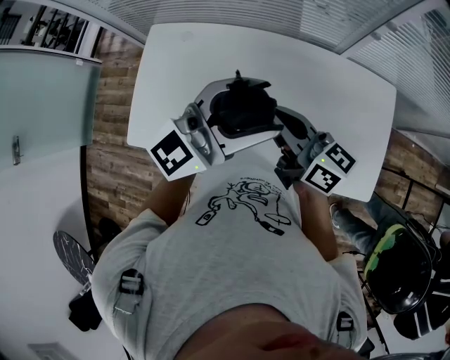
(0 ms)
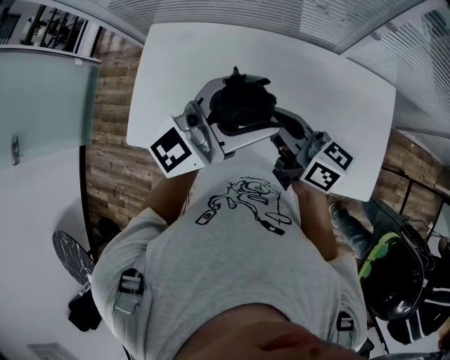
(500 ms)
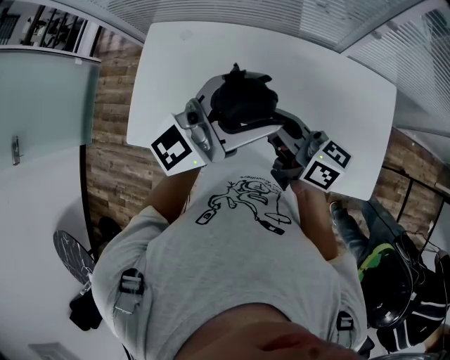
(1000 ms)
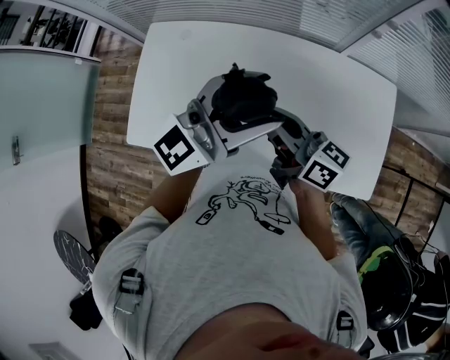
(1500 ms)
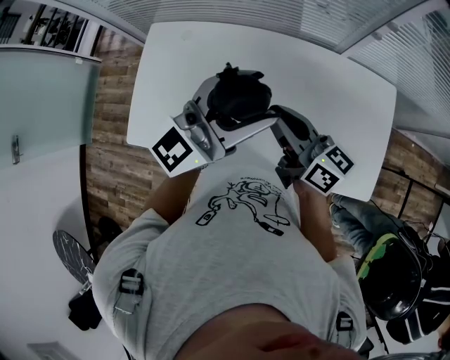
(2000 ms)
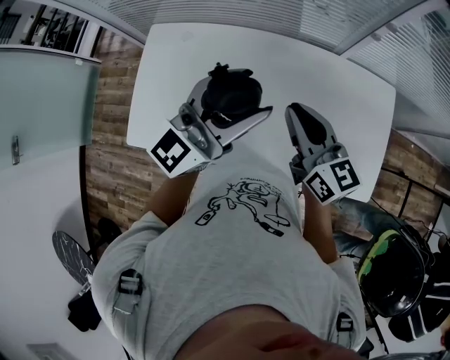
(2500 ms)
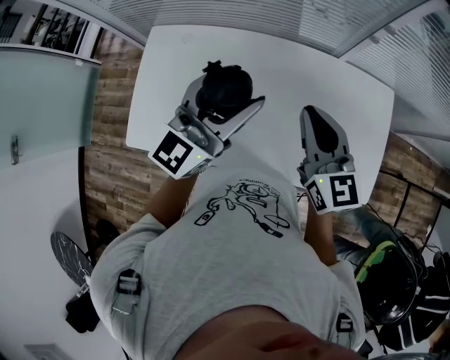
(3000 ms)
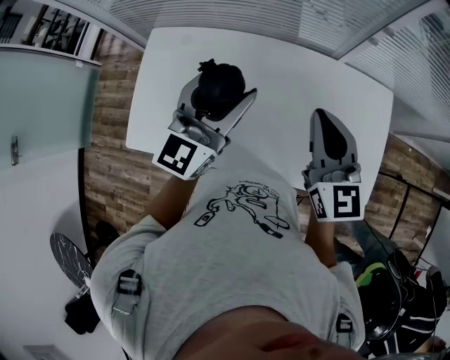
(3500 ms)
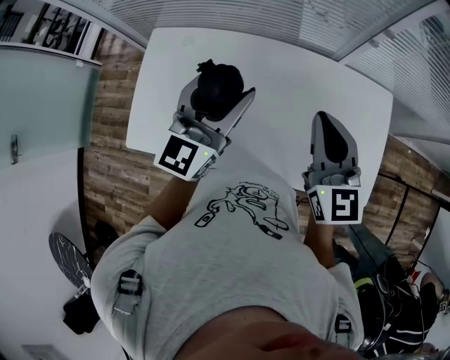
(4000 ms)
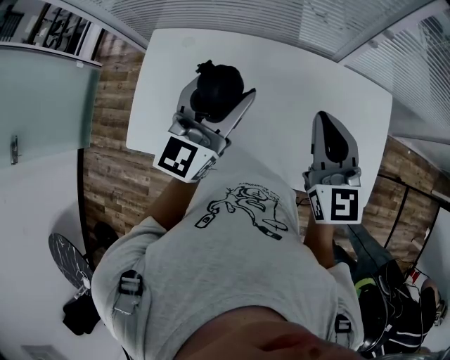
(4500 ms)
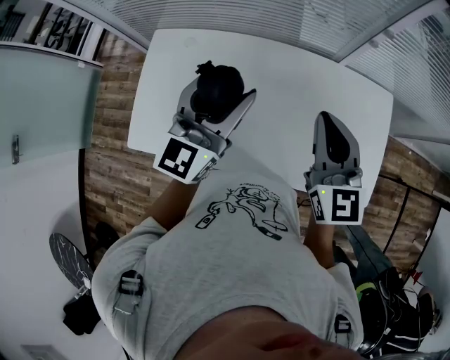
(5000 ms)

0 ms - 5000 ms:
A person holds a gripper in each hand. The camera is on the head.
0 ms - 2500 ms: The right gripper goes about 5 cm to the right, and rotates some 30 degrees.
2500 ms - 5000 ms: The left gripper moves about 5 cm, and rotates some 20 degrees; the right gripper shifts by roughly 5 cm, and rotates roughly 30 degrees.

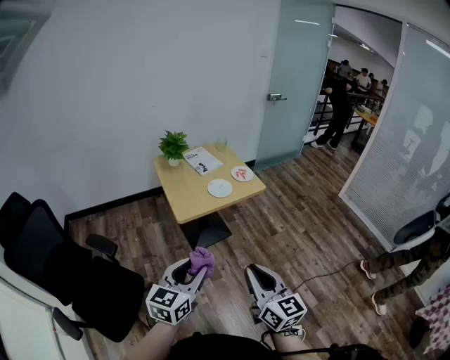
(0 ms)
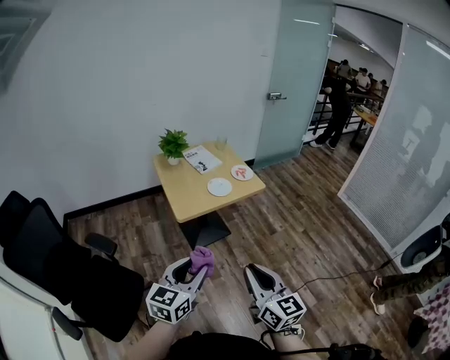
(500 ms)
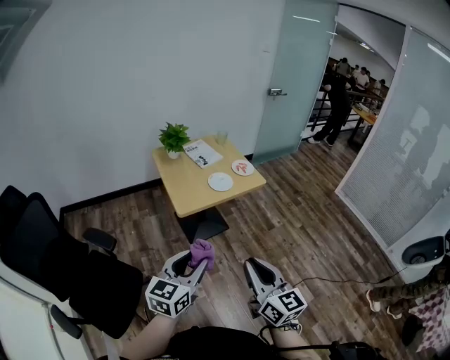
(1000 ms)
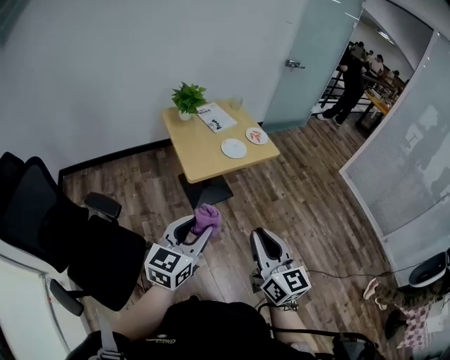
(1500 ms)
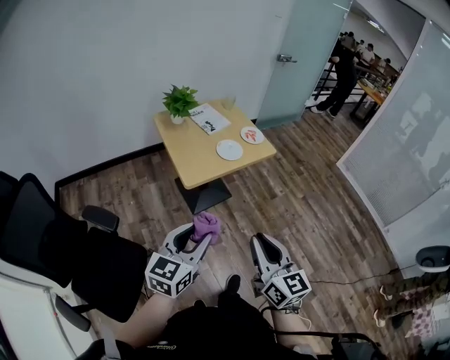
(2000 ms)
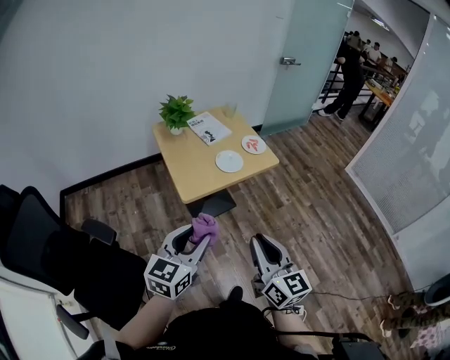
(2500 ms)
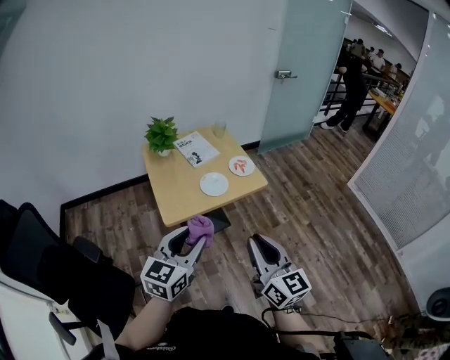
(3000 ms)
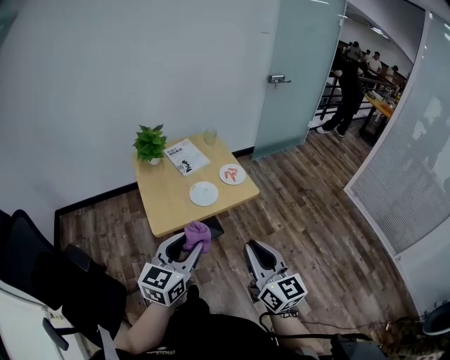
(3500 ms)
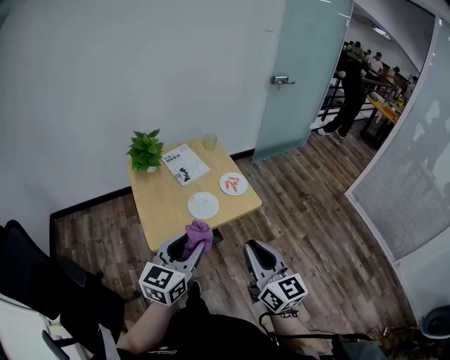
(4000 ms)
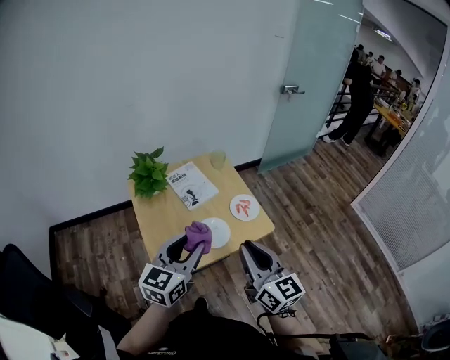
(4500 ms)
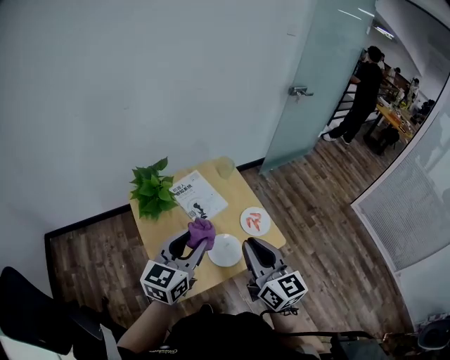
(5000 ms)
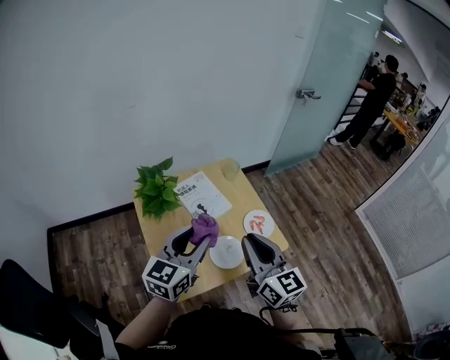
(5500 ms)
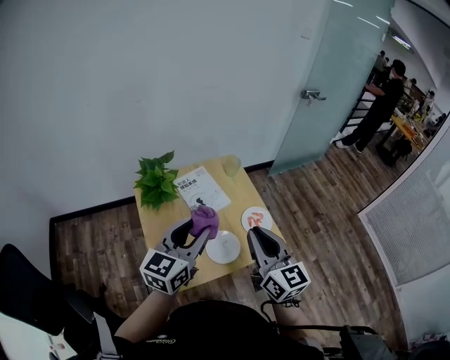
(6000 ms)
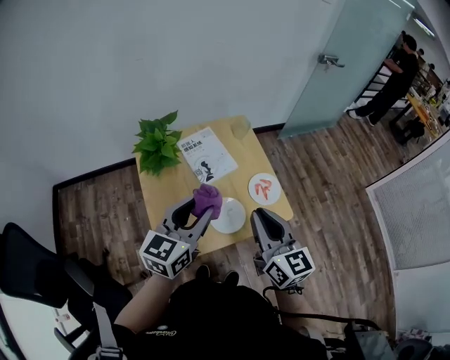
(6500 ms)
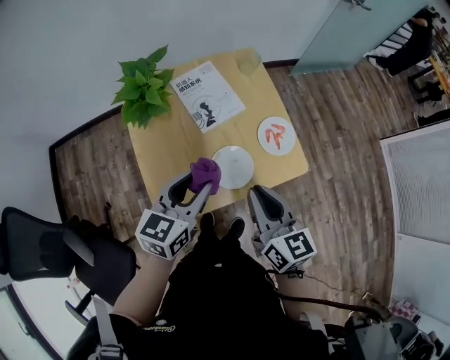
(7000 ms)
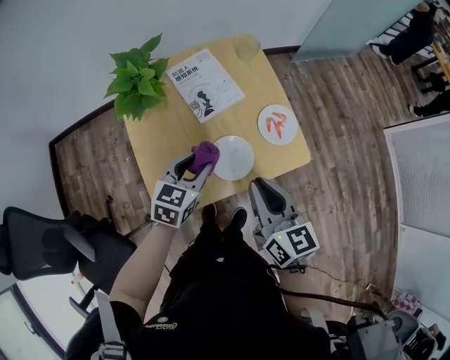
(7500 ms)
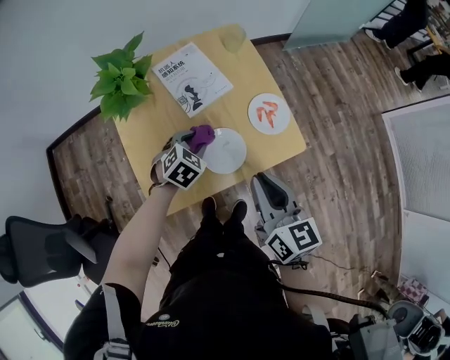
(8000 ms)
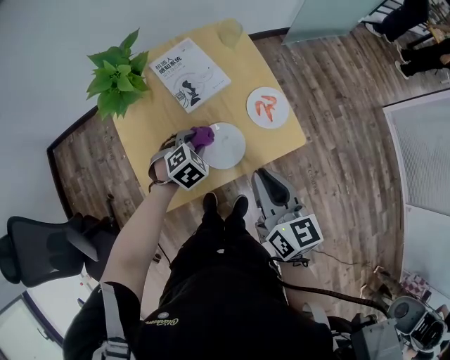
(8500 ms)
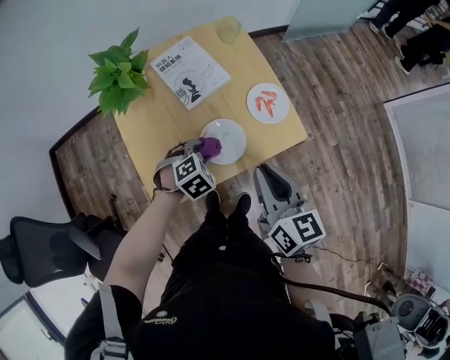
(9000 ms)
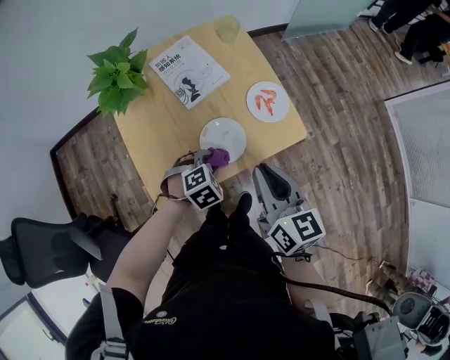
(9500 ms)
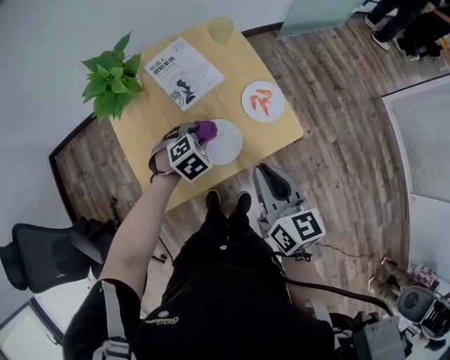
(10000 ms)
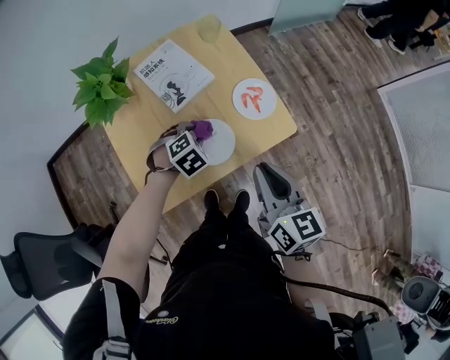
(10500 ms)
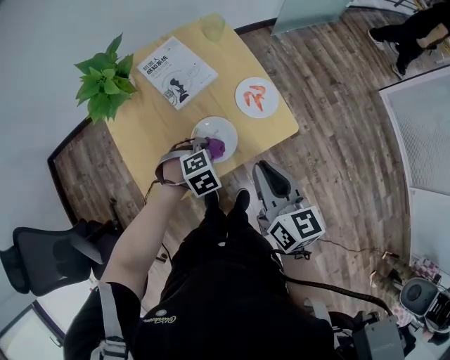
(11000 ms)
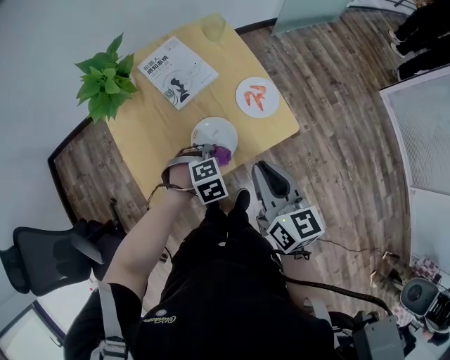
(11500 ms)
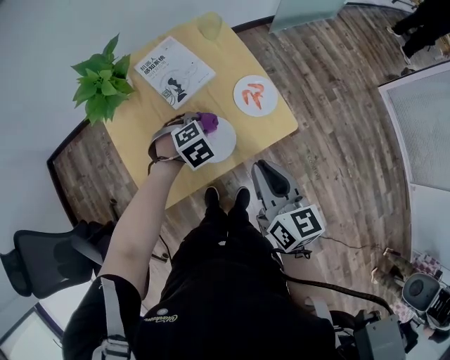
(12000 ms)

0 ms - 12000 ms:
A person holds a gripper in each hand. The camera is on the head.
0 ms - 2000 ms: The grippers both shift to the left by about 10 cm.
2000 ms - 4000 ms: Both grippers move forward and to the right, about 30 cm.
4000 ms - 6000 ms: Both grippers travel together forward, approximately 25 cm.
6000 ms - 8000 ms: The right gripper travels downward by roughly 15 cm, and rotates about 20 degrees. The left gripper moves downward, some 35 cm, and tilts its fingers roughly 50 degrees downward.
8000 ms - 10000 ms: The left gripper reaches roughly 10 cm backward, then returns.

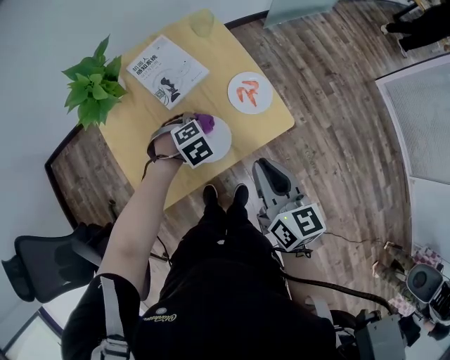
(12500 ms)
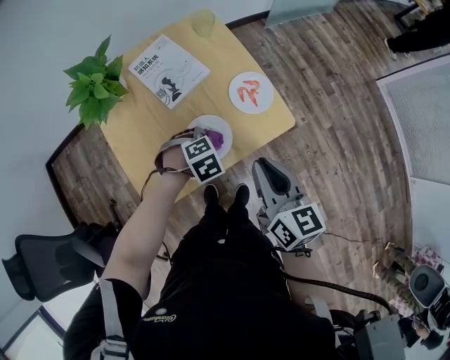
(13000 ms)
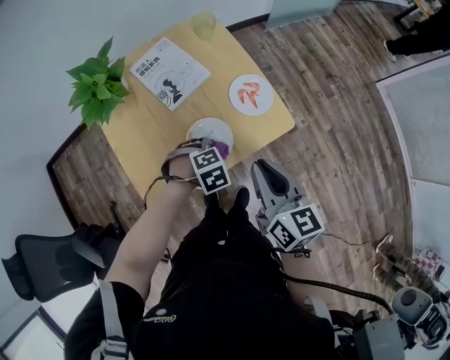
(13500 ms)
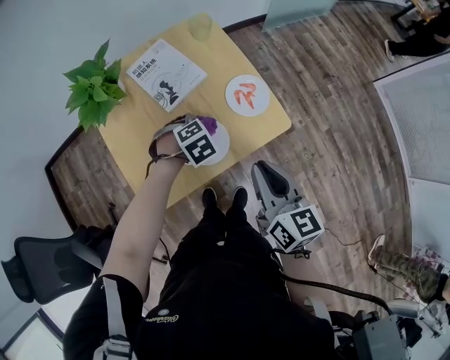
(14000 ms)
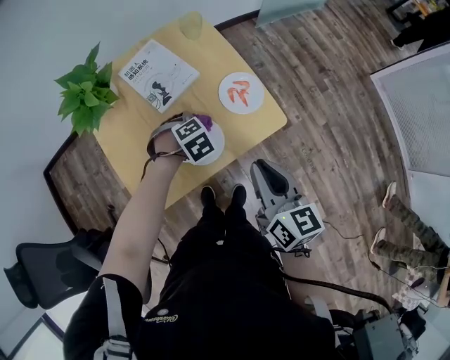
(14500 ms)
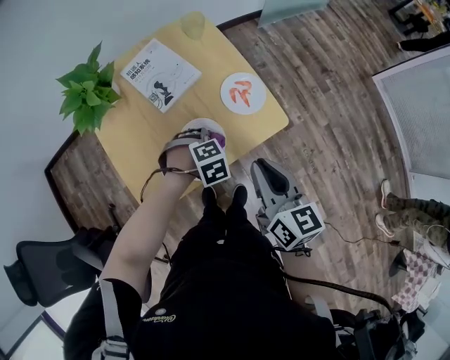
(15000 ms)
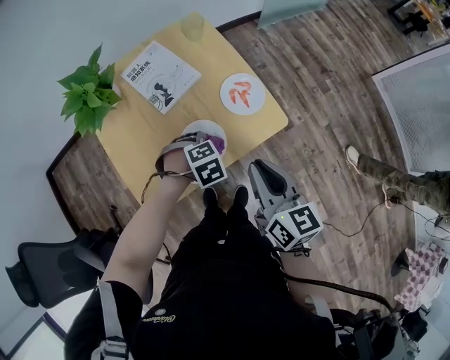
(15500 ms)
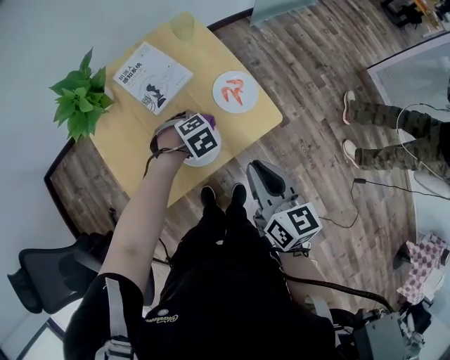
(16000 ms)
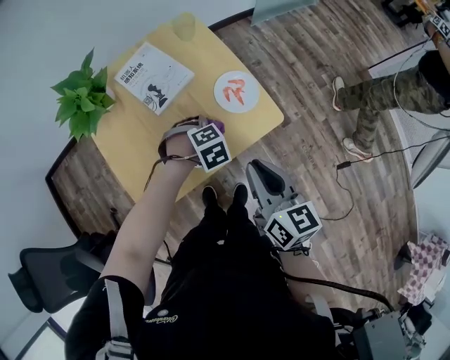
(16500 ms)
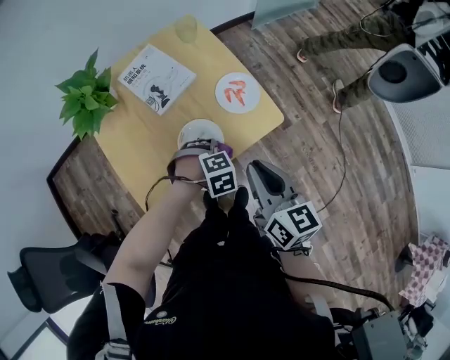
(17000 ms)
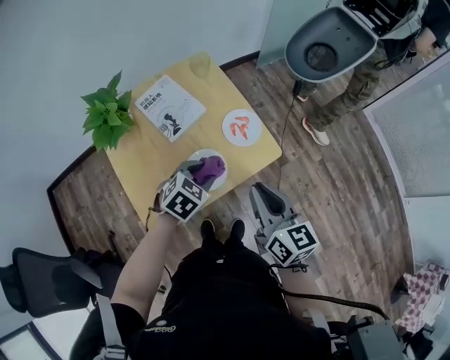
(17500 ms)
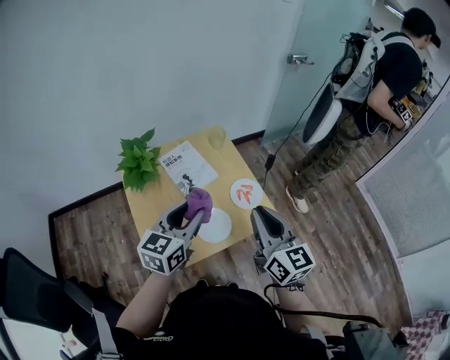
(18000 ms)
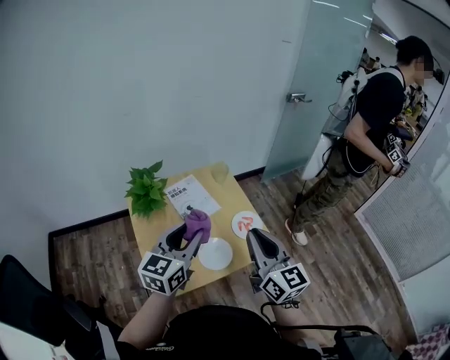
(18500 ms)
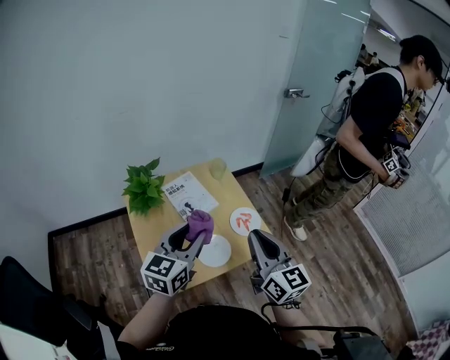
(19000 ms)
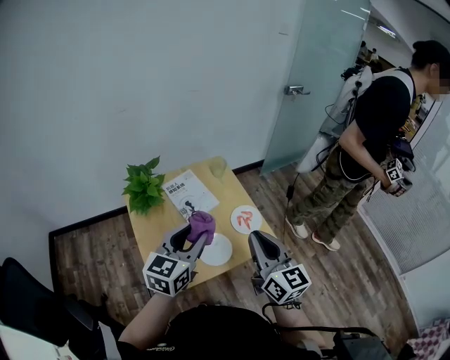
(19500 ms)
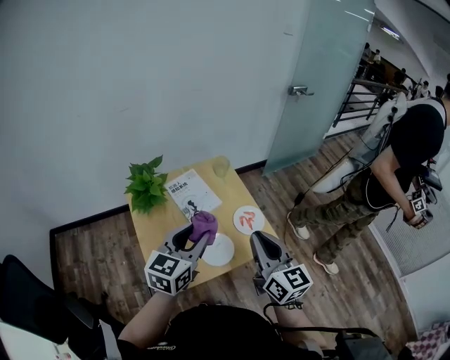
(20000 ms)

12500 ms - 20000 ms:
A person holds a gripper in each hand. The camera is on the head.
14500 ms - 16500 ms: The left gripper moves approximately 5 cm.
16500 ms - 18000 ms: The right gripper moves upward, approximately 15 cm, and rotates about 20 degrees. The left gripper goes roughly 30 cm upward, and points its fingers roughly 70 degrees further upward.
18000 ms - 20000 ms: There are only small adjustments of the grippers.

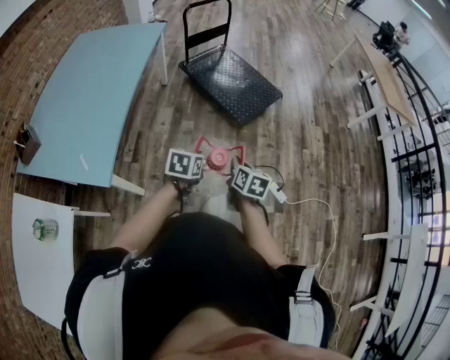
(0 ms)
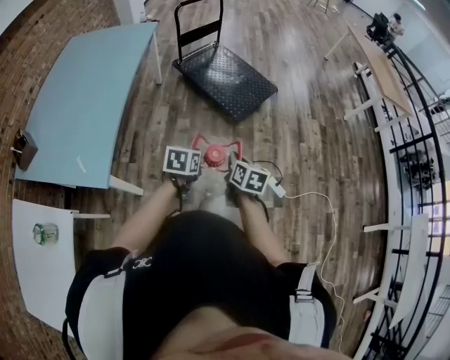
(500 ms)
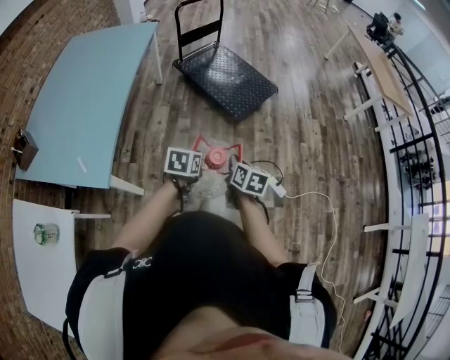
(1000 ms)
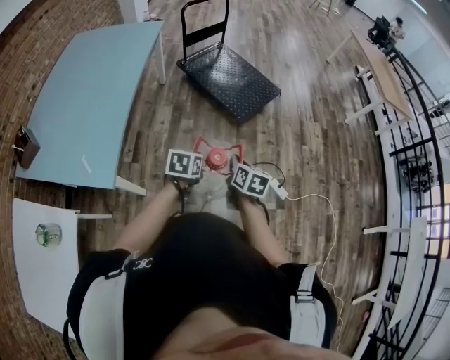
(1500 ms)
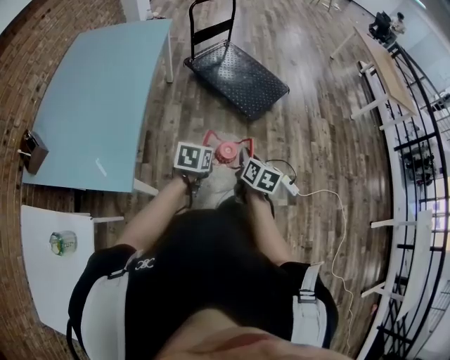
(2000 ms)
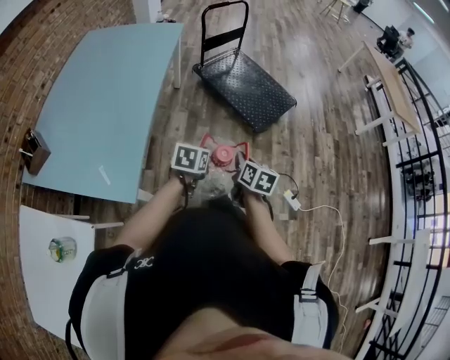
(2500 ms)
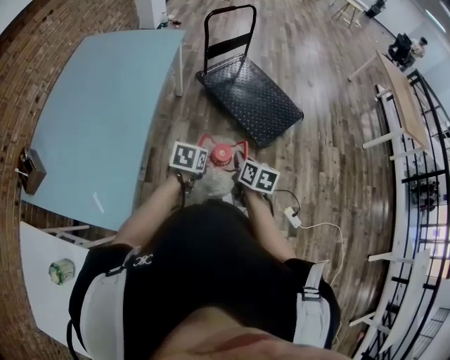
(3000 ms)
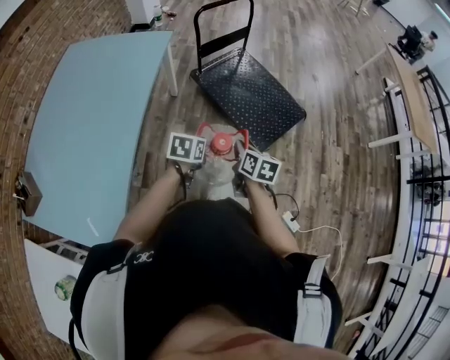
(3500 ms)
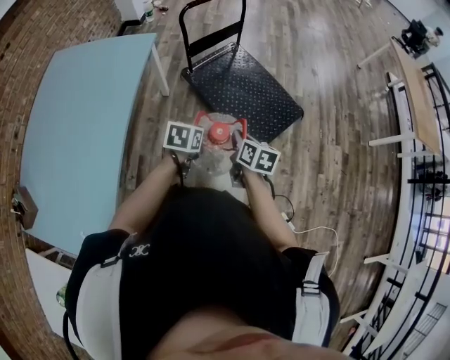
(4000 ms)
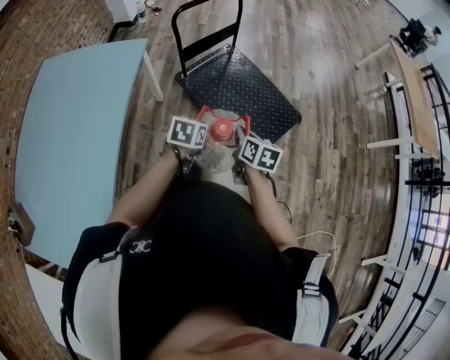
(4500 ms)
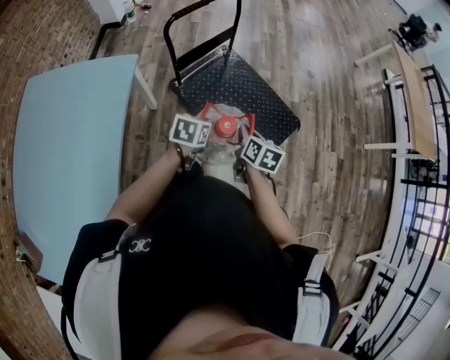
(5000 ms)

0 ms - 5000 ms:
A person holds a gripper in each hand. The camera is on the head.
0 ms - 2500 ms: The two grippers go about 15 cm to the left.
2500 ms - 5000 ms: The pair of grippers is taken forward, approximately 60 cm.
